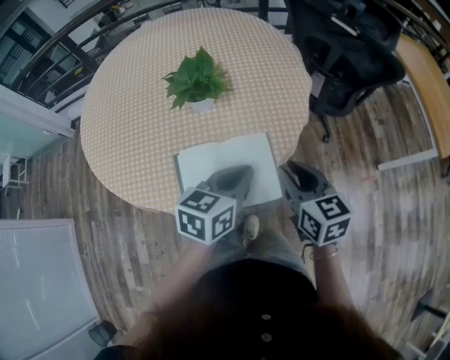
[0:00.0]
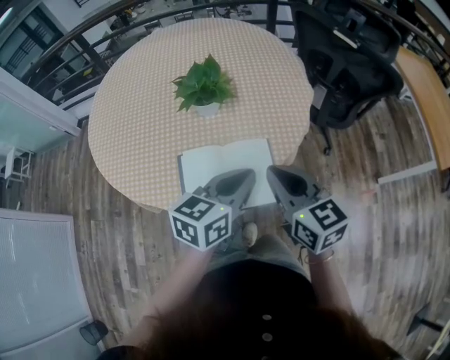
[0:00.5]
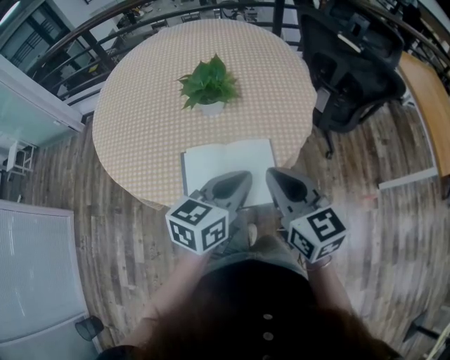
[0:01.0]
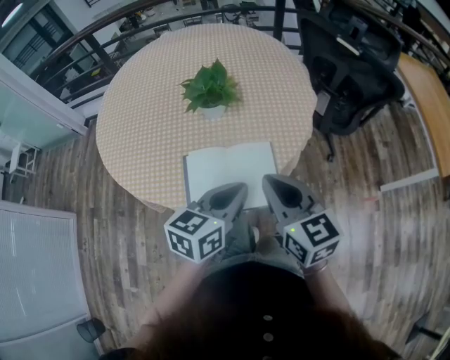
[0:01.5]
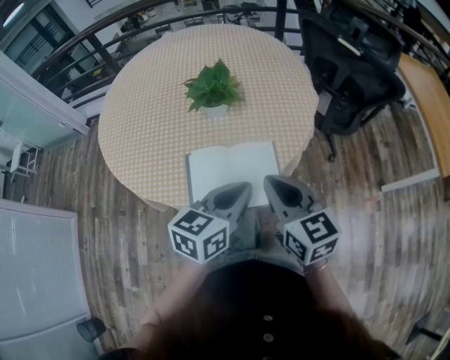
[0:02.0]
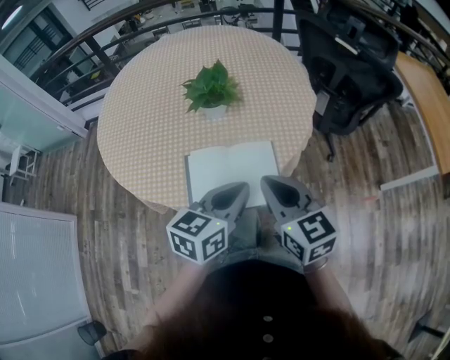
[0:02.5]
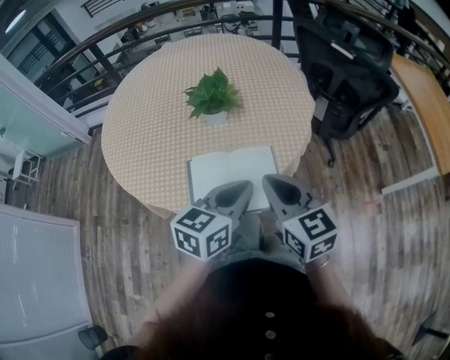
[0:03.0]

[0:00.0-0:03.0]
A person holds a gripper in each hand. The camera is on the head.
0:00.0 to 0:01.5: The left gripper goes about 5 cm backward. Meanwhile the right gripper heads upward and to the left, covering roughly 10 cm, and closes its fingers.
0:01.5 to 0:03.0: The grippers make only small movements.

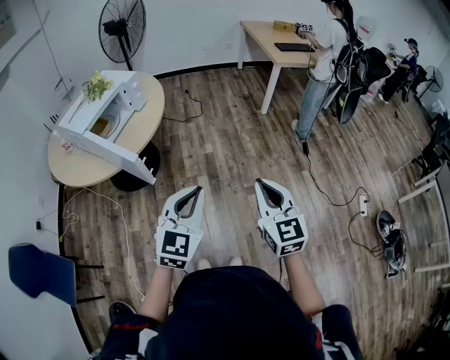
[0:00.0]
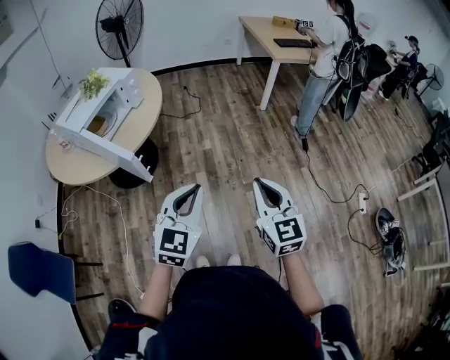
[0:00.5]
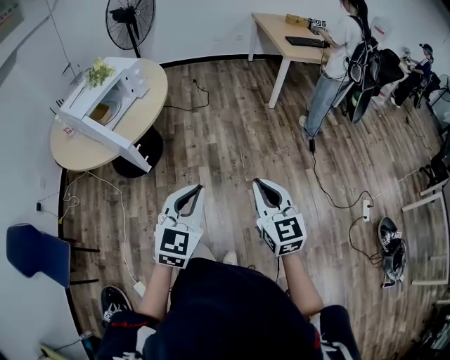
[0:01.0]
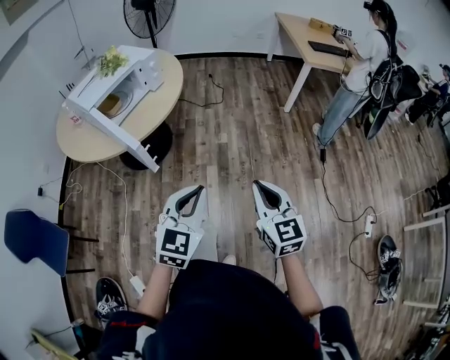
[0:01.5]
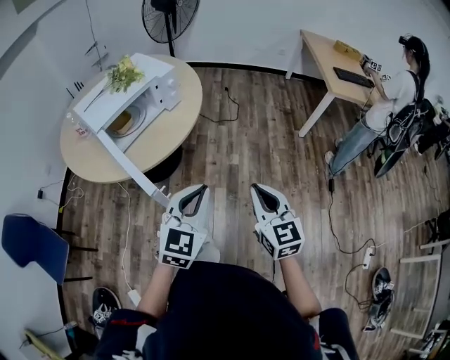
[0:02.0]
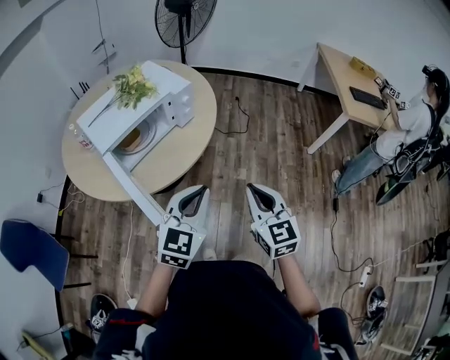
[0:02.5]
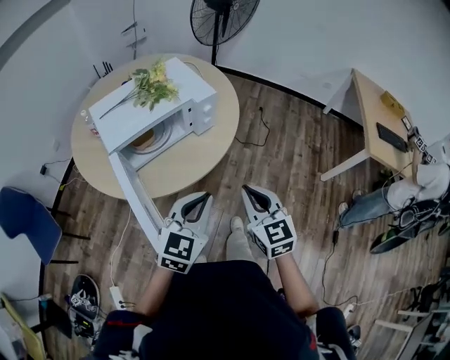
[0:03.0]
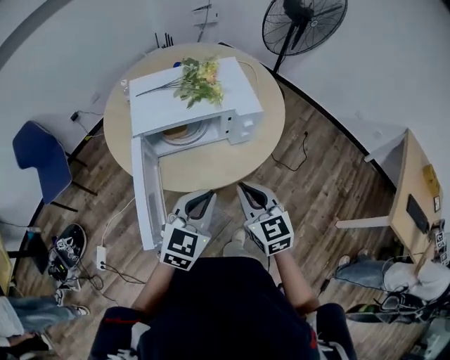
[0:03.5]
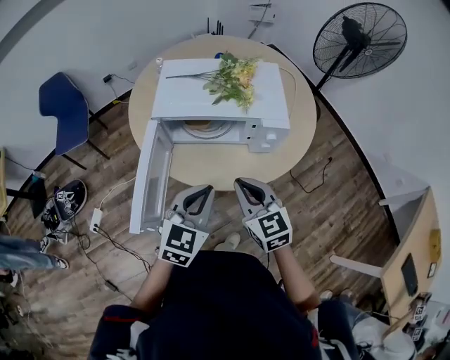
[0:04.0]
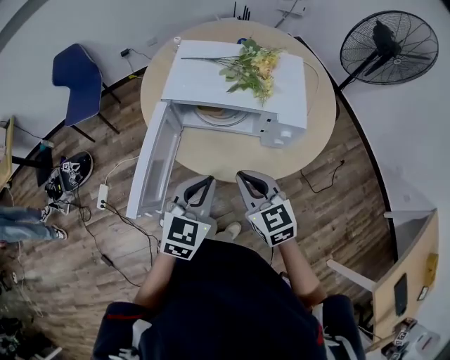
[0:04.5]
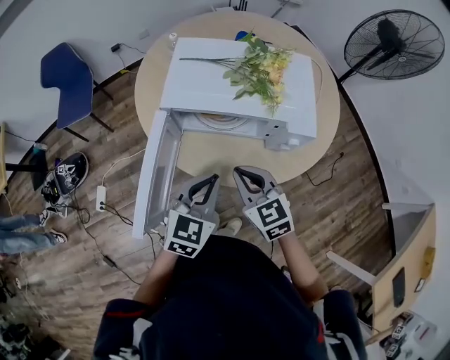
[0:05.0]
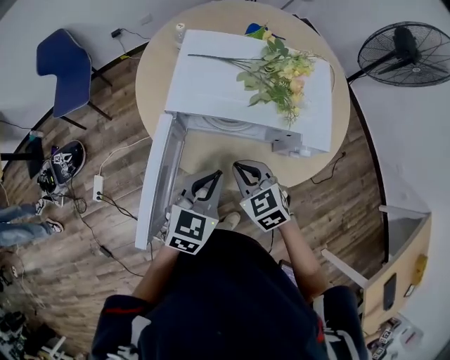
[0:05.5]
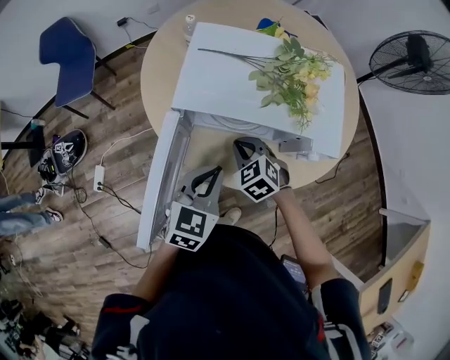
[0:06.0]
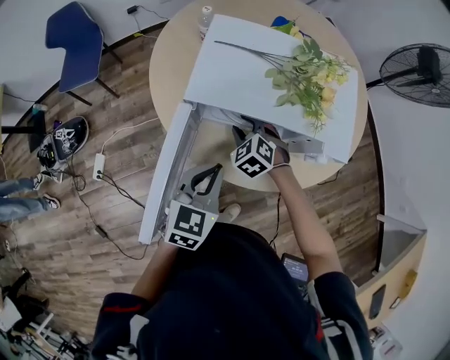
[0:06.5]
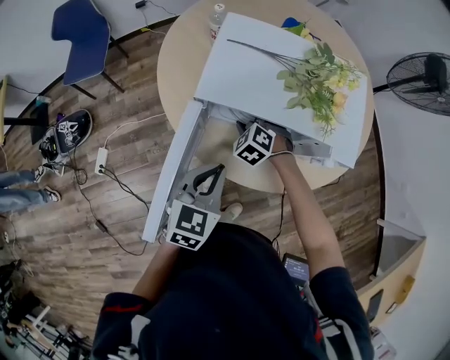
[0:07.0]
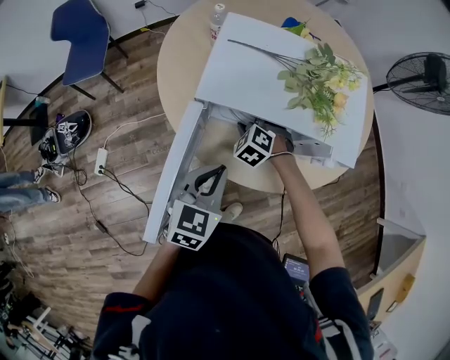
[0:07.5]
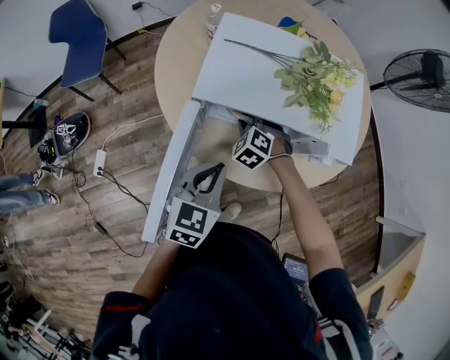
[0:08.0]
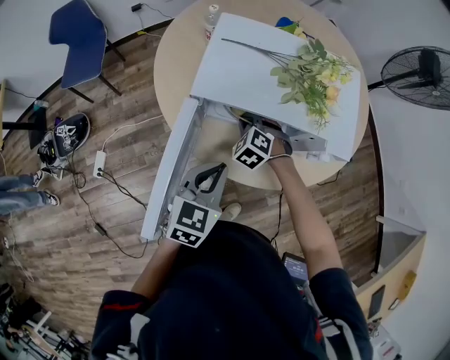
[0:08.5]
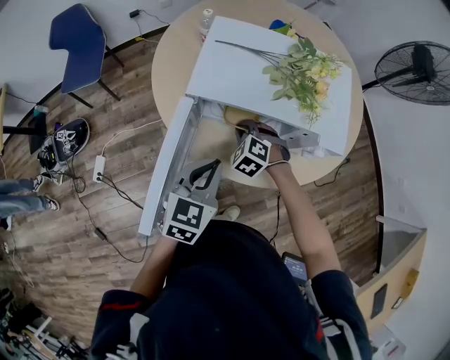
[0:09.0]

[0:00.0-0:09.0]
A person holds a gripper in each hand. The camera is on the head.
0:00.0 to 0:02.0: The right gripper goes approximately 25 cm forward and to the left. The left gripper heads forward, covering some 20 cm.
0:02.0 to 0:04.5: The right gripper moves roughly 40 cm, and changes its angle by about 70 degrees; the left gripper moves approximately 30 cm, and swivels about 60 degrees.
0:04.5 to 0:07.0: The right gripper goes roughly 35 cm forward, downward and to the left, tips its fingers downward by some 30 degrees, and opens its fingers, while the left gripper travels forward, to the left and downward by roughly 15 cm.
0:07.0 to 0:09.0: The right gripper heads backward, covering some 5 cm, and closes.

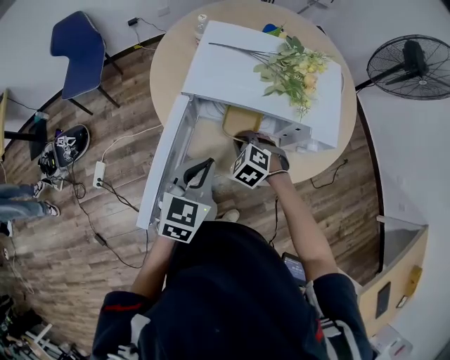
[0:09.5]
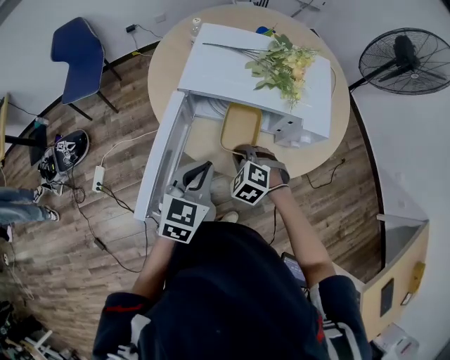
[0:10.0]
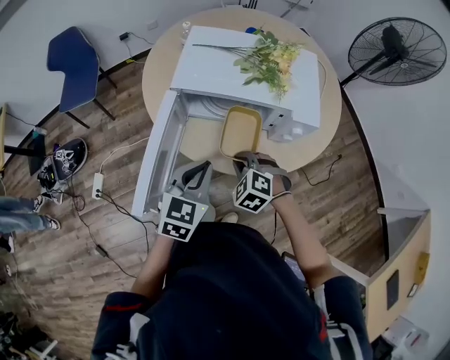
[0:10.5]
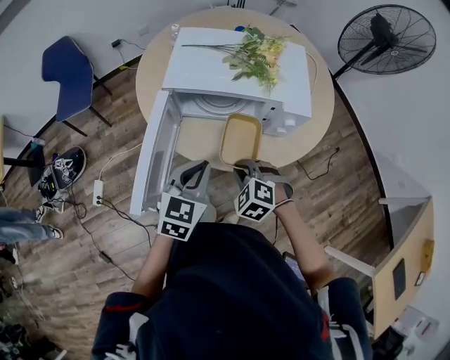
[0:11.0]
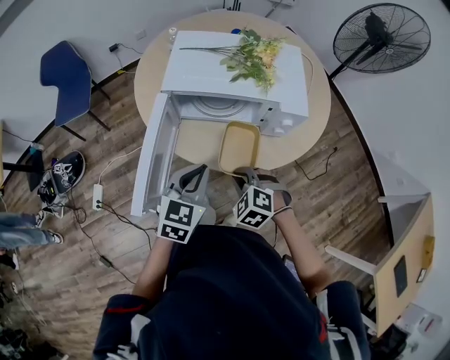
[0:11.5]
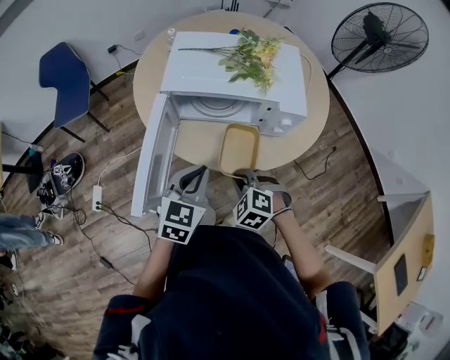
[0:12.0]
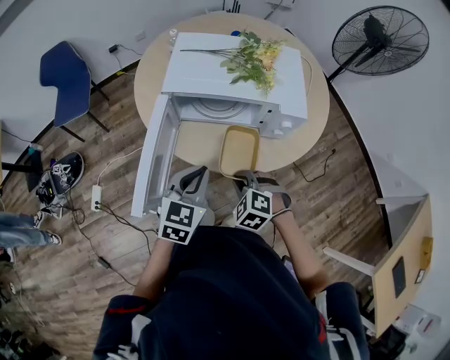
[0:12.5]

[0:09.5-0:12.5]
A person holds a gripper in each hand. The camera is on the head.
0:09.5 to 0:11.0: The right gripper heads backward, covering about 15 cm; the left gripper moves backward, about 5 cm.
0:11.0 to 0:12.5: The grippers make only small movements.

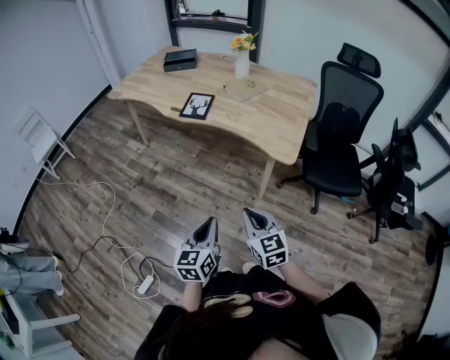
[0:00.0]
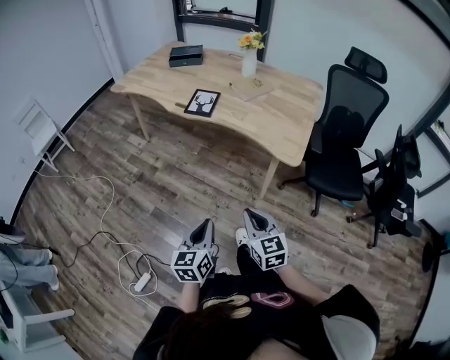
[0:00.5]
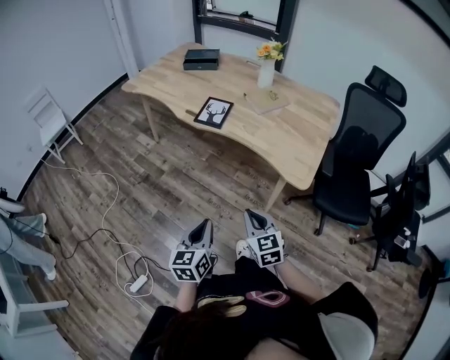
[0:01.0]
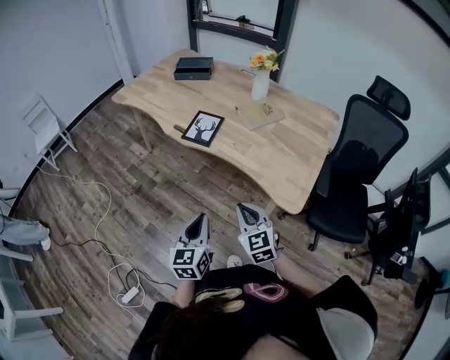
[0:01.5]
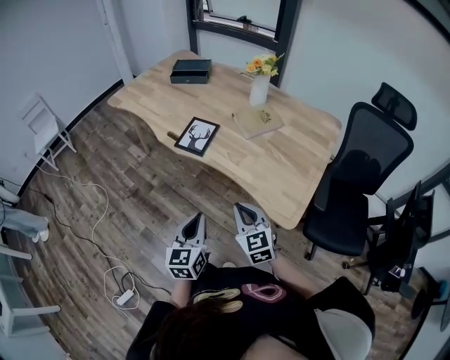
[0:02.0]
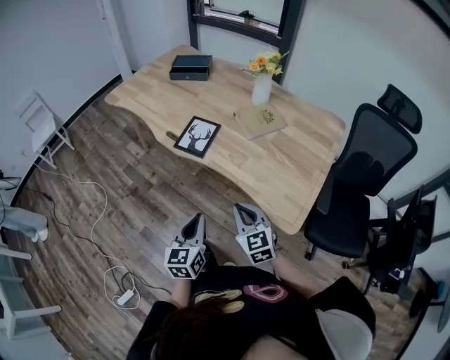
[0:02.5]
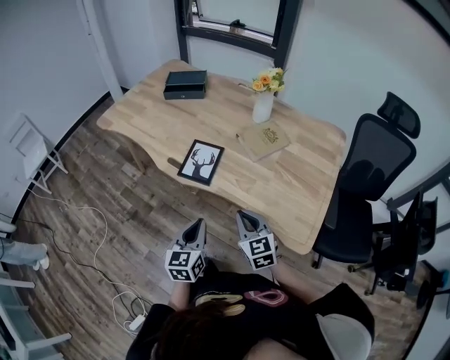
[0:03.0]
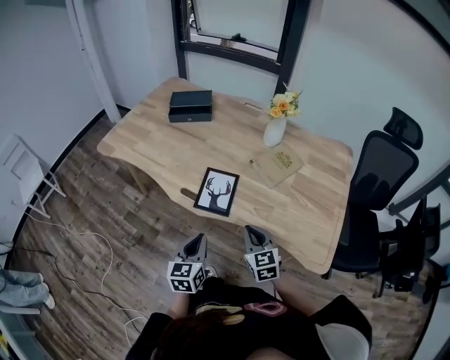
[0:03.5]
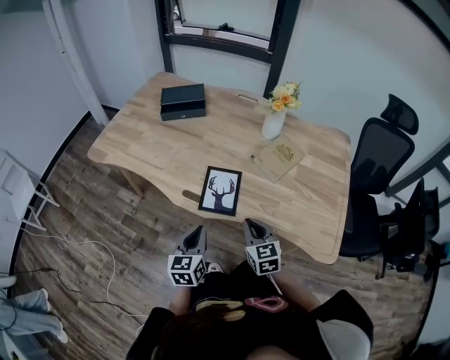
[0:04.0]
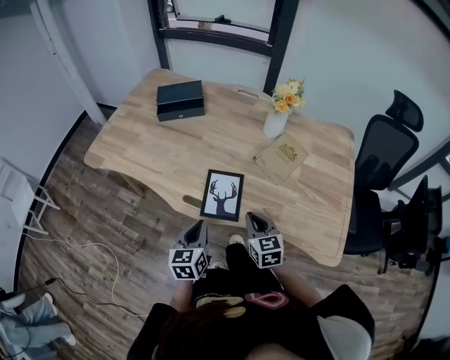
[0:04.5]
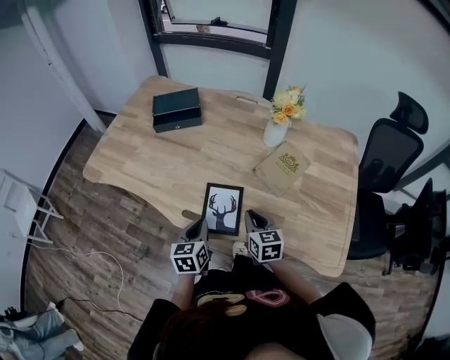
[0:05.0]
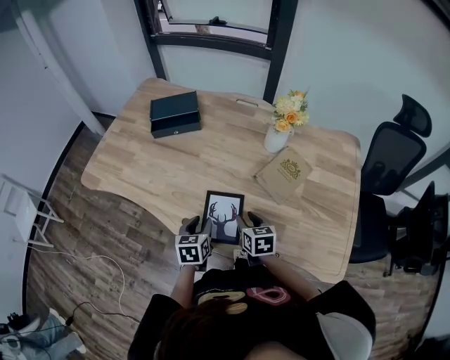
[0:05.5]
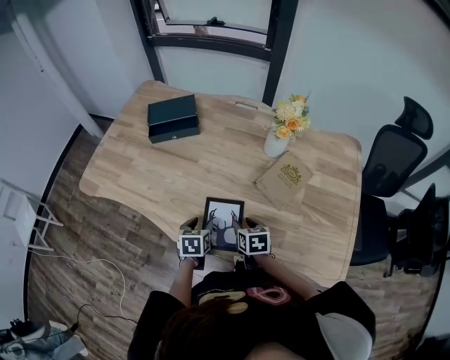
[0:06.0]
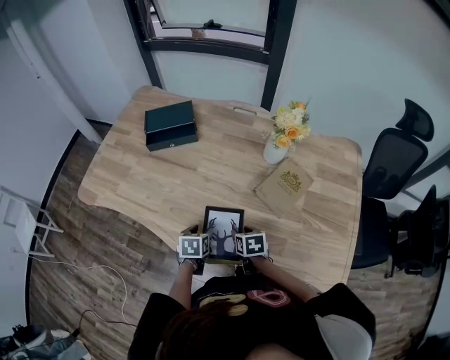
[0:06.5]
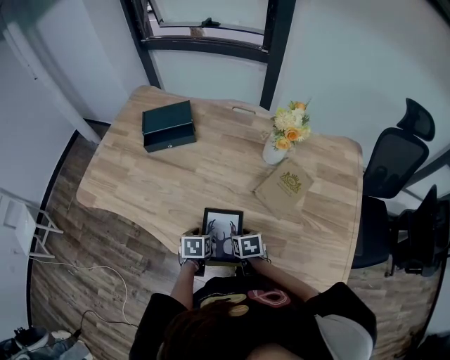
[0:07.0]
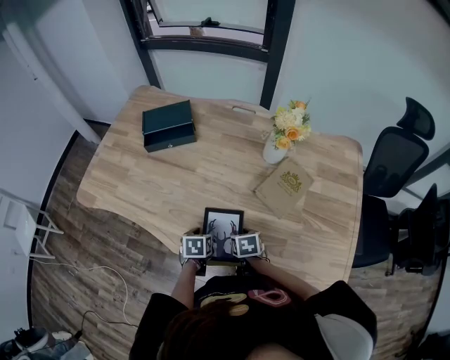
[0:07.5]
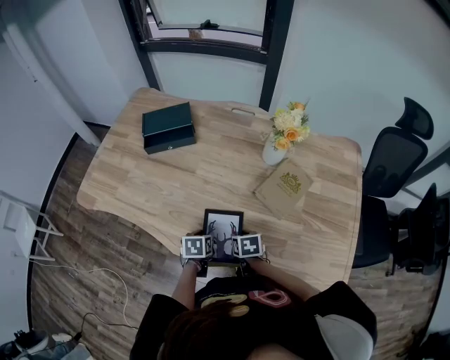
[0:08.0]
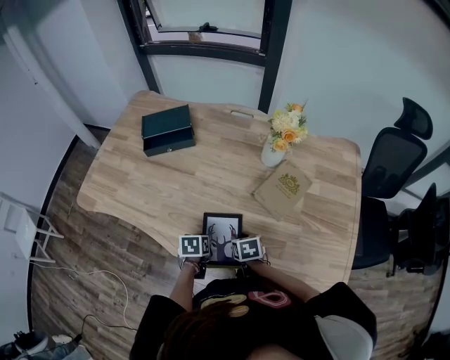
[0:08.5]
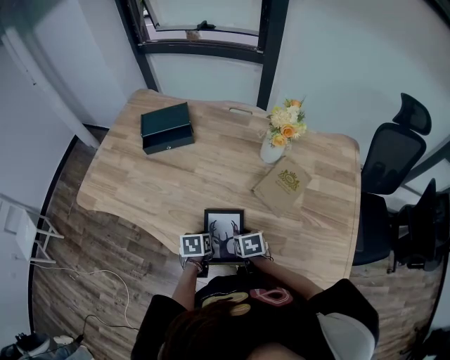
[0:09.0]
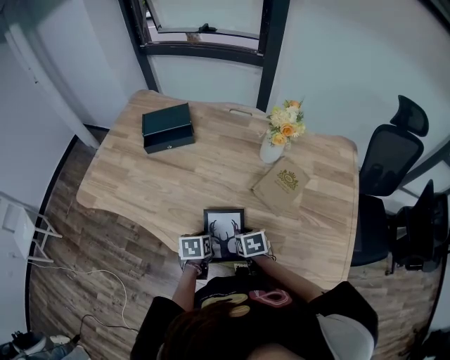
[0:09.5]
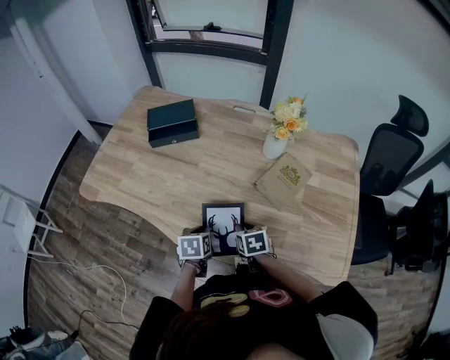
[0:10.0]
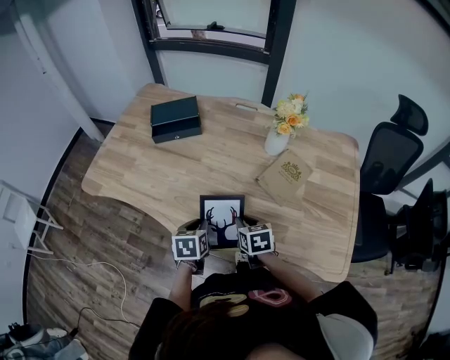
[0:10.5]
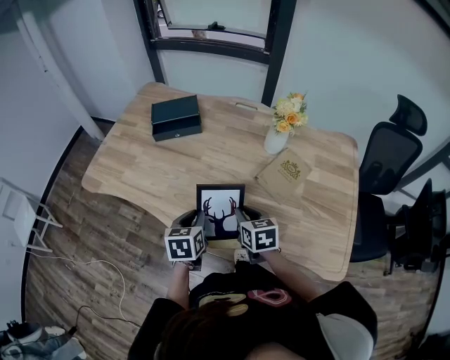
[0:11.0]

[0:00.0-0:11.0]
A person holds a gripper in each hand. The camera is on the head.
0:00.0 to 0:02.0: Both grippers move forward, about 25 cm.
0:02.0 to 0:03.5: Both grippers move forward and to the left, some 25 cm.
0:03.5 to 0:05.5: The grippers both shift forward by some 20 cm. The right gripper turns by roughly 30 degrees, and opens its fingers. The left gripper opens its fingers.
0:05.5 to 0:07.5: Both grippers move downward, about 10 cm. The left gripper changes its angle by approximately 20 degrees; the right gripper changes its angle by approximately 20 degrees.
0:07.5 to 0:09.0: The left gripper closes up.
0:09.0 to 0:11.0: The two grippers go roughly 15 cm upward. The right gripper changes its angle by roughly 20 degrees. Meanwhile the left gripper turns by some 20 degrees.
